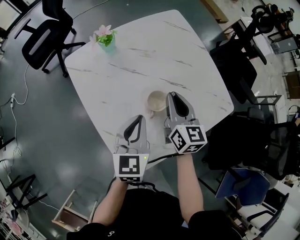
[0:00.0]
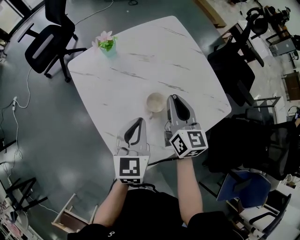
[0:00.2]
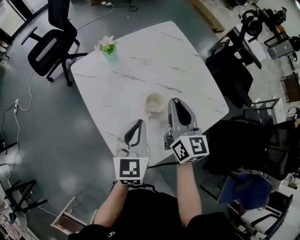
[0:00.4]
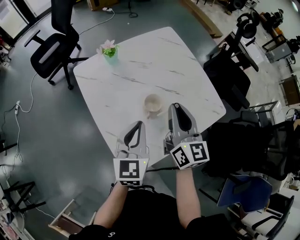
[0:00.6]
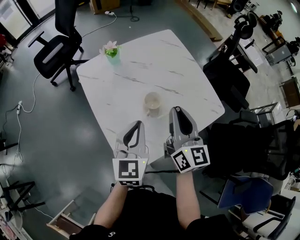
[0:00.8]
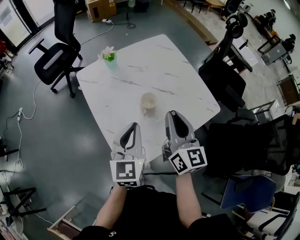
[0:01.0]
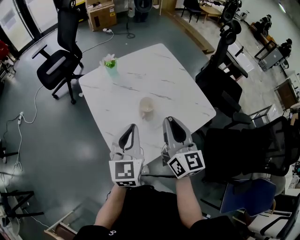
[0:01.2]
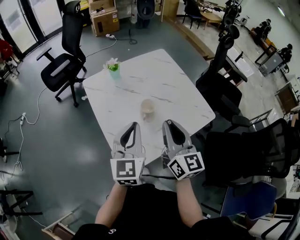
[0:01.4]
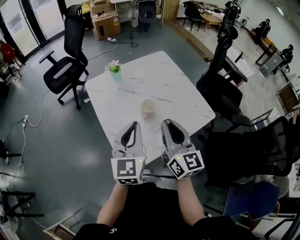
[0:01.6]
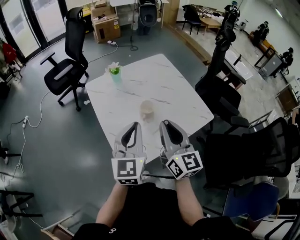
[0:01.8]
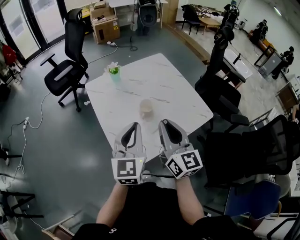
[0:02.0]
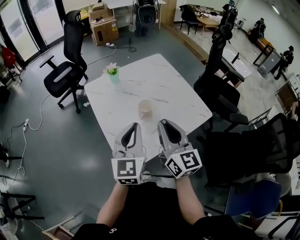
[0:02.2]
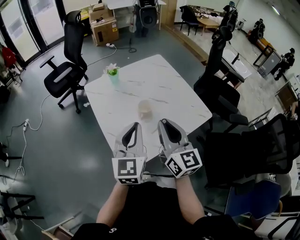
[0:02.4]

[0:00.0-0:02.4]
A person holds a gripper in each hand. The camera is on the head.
0.0 to 1.2 s: The left gripper shifts roughly 15 cm upward and backward, while the right gripper goes about 20 cm backward and upward.
1.2 to 2.4 s: The left gripper goes roughly 5 cm upward. Meanwhile the right gripper goes about 5 cm backward.

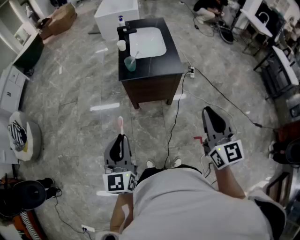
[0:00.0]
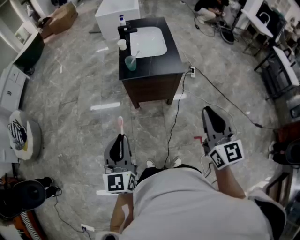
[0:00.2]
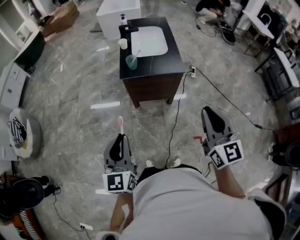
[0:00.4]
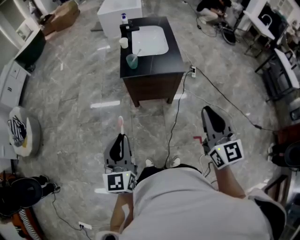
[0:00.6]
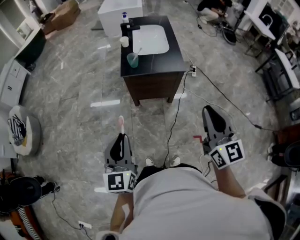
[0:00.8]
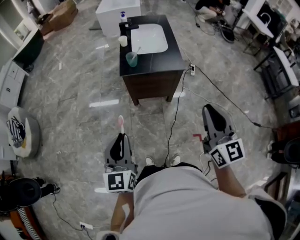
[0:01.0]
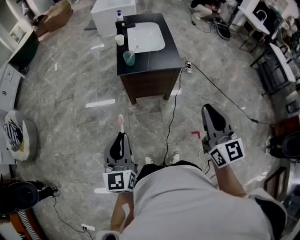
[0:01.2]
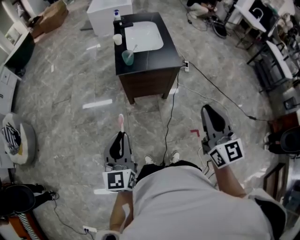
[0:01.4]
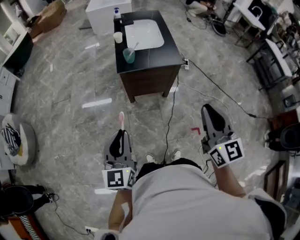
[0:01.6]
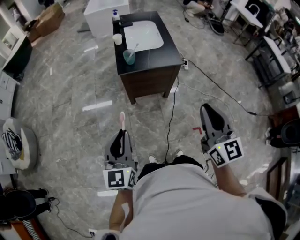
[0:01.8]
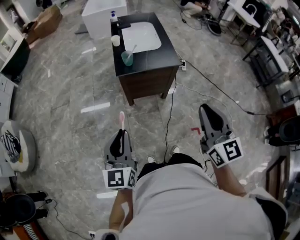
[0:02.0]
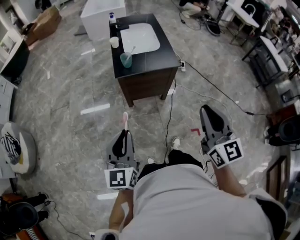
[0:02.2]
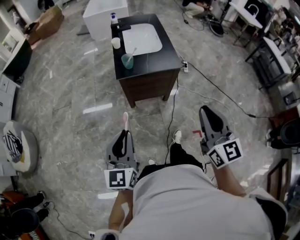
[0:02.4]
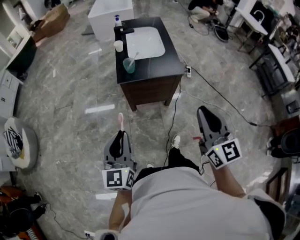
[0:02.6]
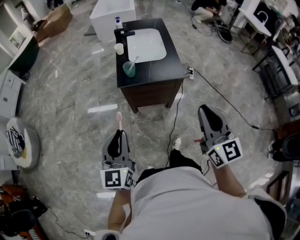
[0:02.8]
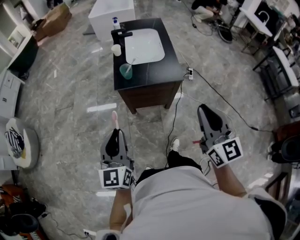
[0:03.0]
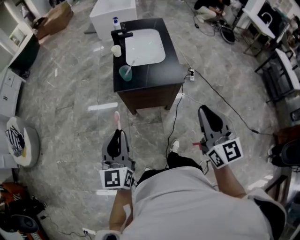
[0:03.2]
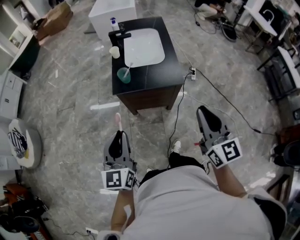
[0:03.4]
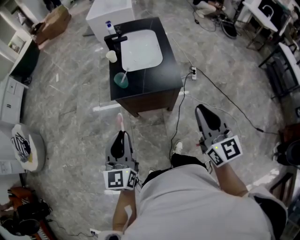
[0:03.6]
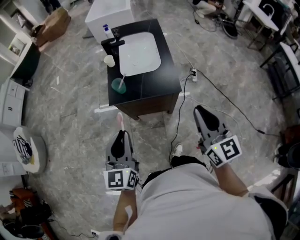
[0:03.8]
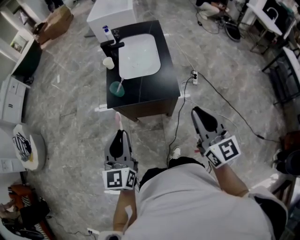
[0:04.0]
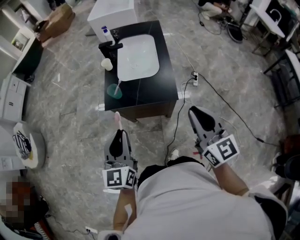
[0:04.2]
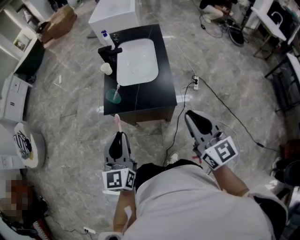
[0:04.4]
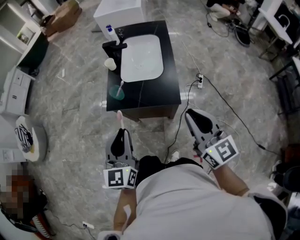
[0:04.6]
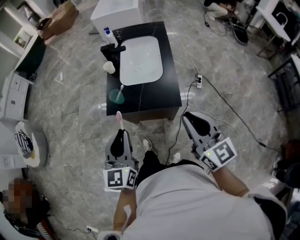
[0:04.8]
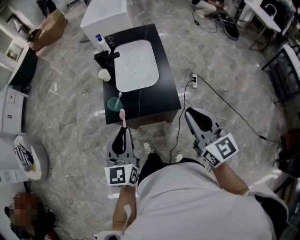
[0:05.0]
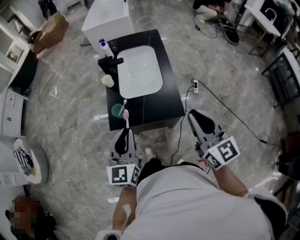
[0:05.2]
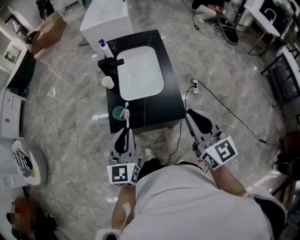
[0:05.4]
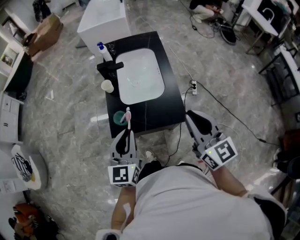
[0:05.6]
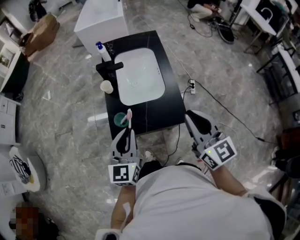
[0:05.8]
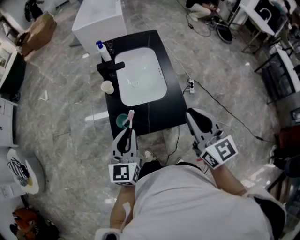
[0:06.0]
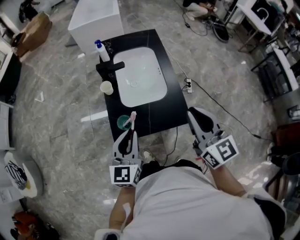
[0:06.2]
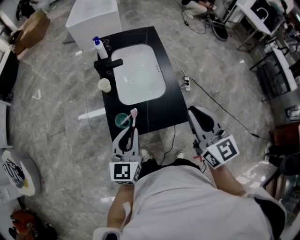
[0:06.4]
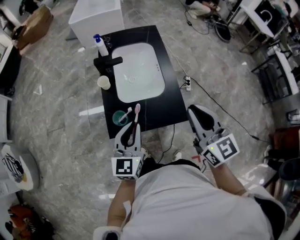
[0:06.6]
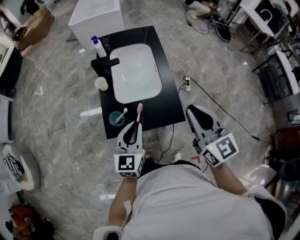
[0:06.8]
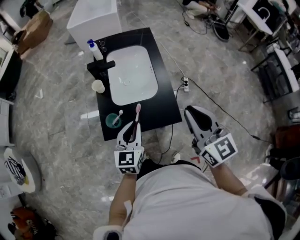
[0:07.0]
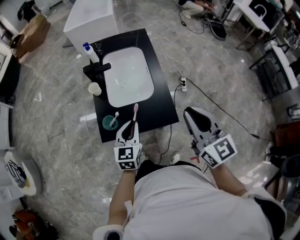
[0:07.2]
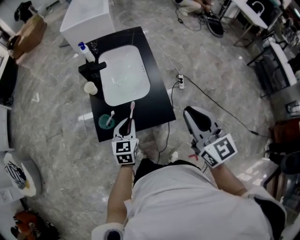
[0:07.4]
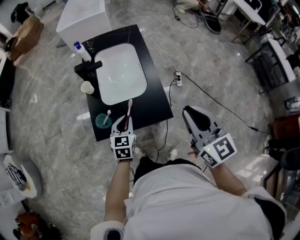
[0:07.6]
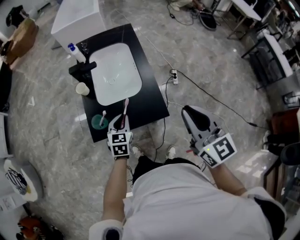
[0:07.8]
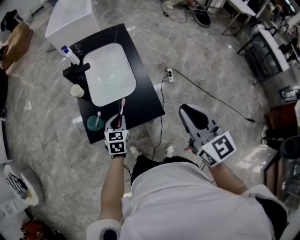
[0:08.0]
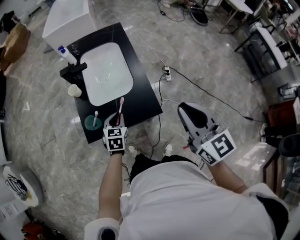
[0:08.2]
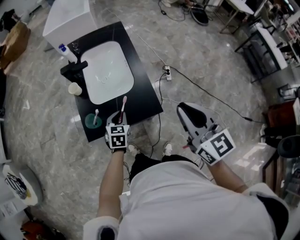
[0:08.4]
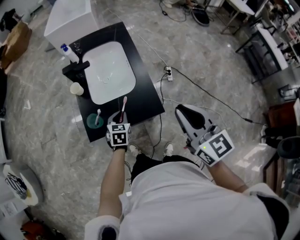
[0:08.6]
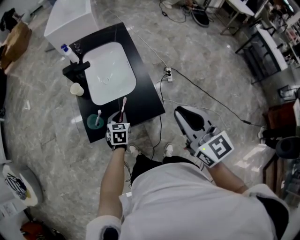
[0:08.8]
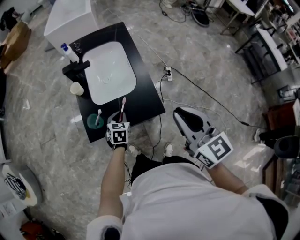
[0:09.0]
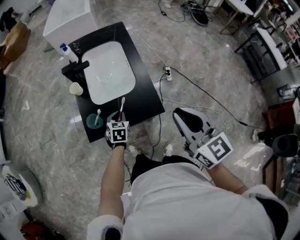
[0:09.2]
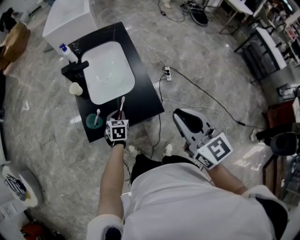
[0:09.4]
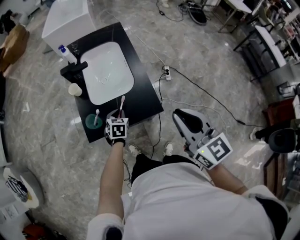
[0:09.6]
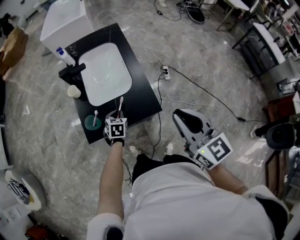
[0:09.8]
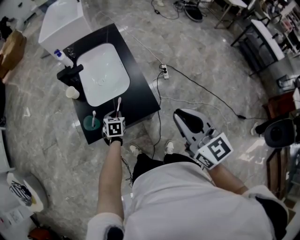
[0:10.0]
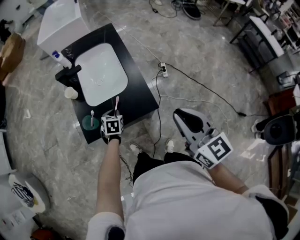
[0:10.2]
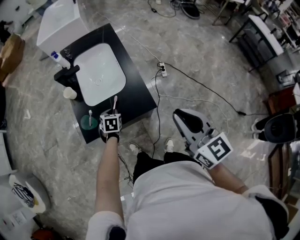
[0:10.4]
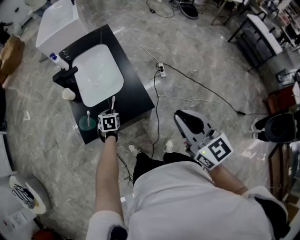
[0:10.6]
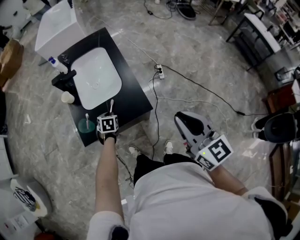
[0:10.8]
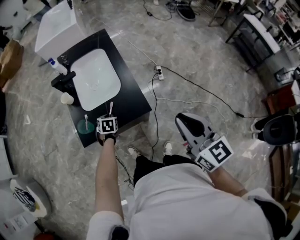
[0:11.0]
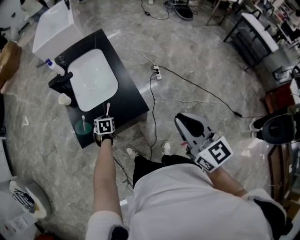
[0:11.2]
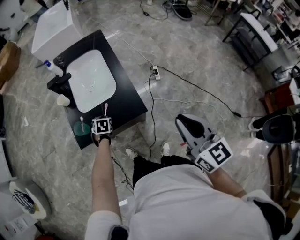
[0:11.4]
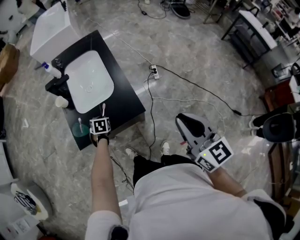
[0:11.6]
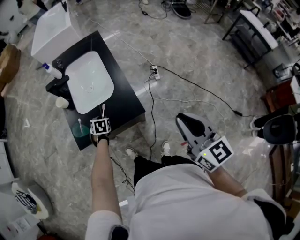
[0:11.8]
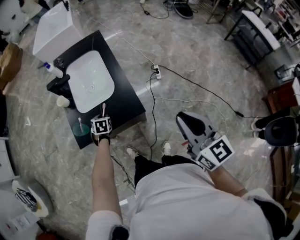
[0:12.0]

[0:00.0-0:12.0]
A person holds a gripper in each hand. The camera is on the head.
0.0 to 1.6 s: The right gripper travels to the left by some 5 cm.
1.6 to 3.0 s: Both grippers travel together forward, about 10 cm.
3.0 to 4.4 s: The right gripper shifts approximately 20 cm forward and to the right, while the left gripper goes some 20 cm to the right and forward.
4.4 to 6.0 s: The right gripper is displaced forward and to the left by about 15 cm. Meanwhile the left gripper moves forward, some 20 cm.
6.0 to 7.6 s: The right gripper is displaced to the right by about 10 cm. Meanwhile the left gripper is displaced downward and to the right by approximately 15 cm, and swivels some 20 degrees.
7.6 to 9.0 s: The left gripper is displaced downward by some 10 cm.
9.0 to 10.4 s: The right gripper moves approximately 5 cm.
10.4 to 12.0 s: The right gripper shifts roughly 10 cm to the right.

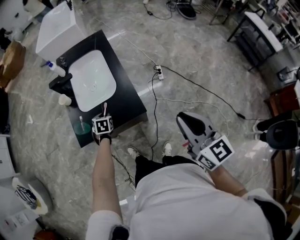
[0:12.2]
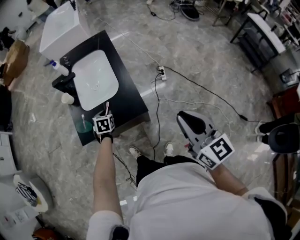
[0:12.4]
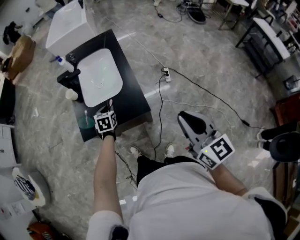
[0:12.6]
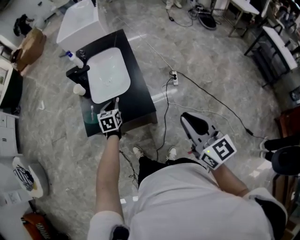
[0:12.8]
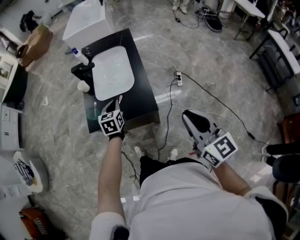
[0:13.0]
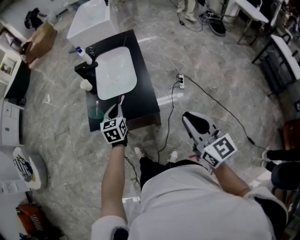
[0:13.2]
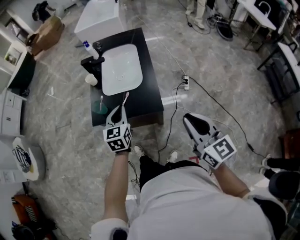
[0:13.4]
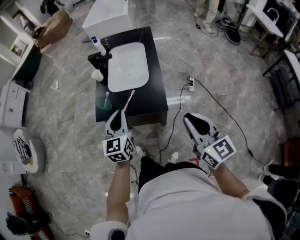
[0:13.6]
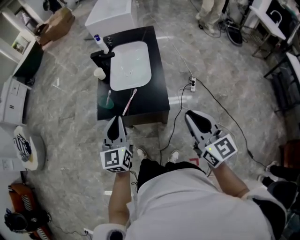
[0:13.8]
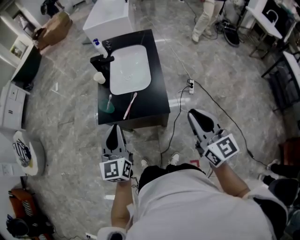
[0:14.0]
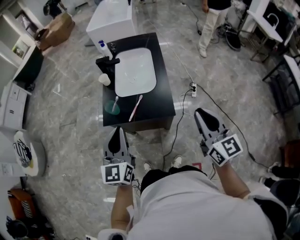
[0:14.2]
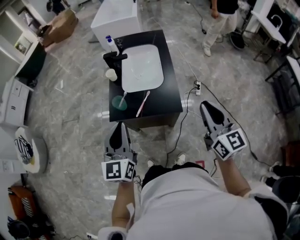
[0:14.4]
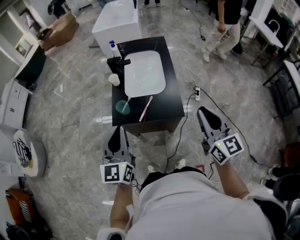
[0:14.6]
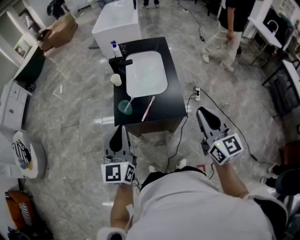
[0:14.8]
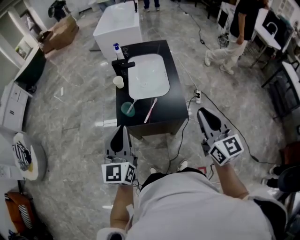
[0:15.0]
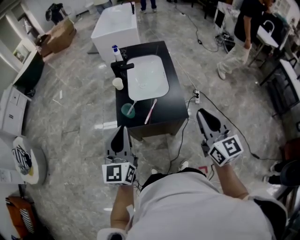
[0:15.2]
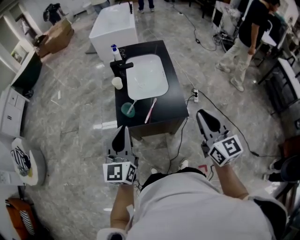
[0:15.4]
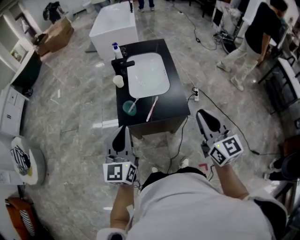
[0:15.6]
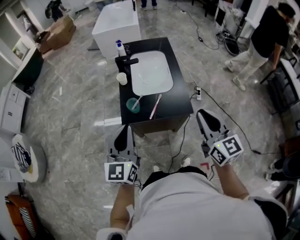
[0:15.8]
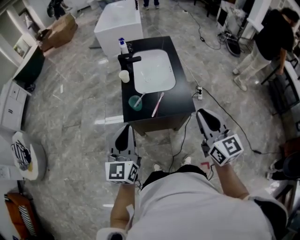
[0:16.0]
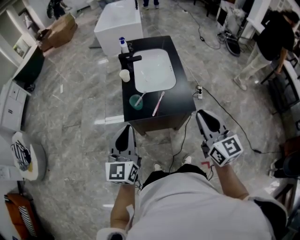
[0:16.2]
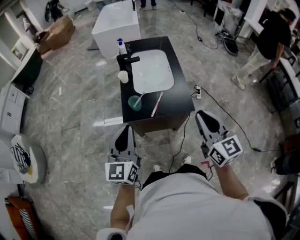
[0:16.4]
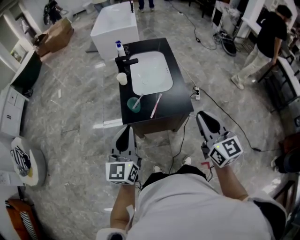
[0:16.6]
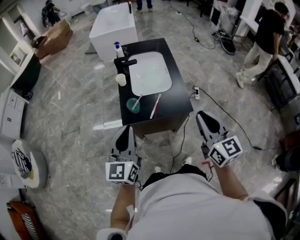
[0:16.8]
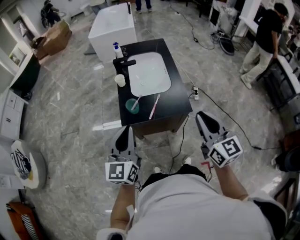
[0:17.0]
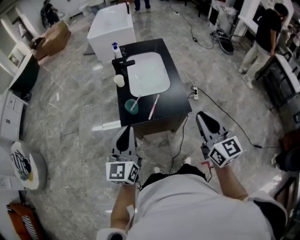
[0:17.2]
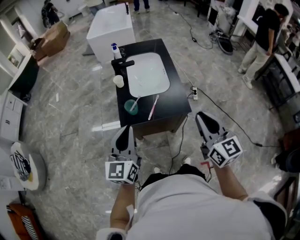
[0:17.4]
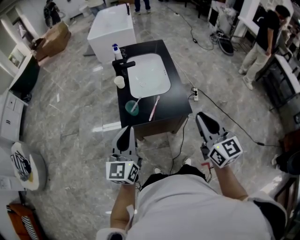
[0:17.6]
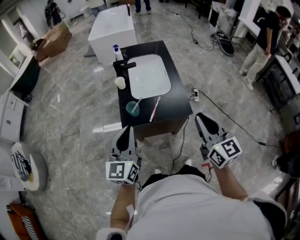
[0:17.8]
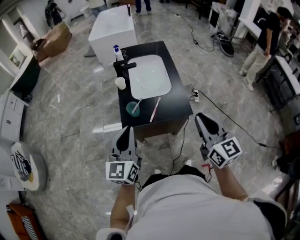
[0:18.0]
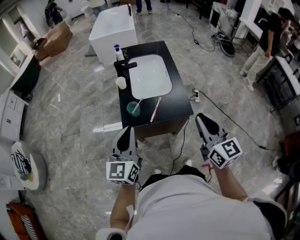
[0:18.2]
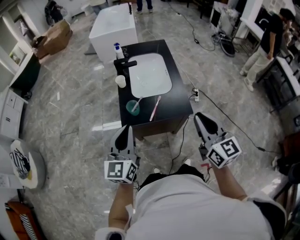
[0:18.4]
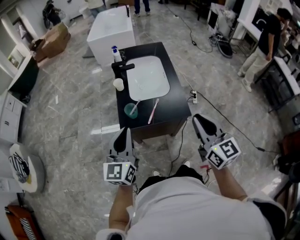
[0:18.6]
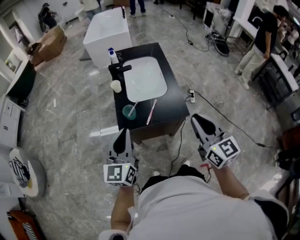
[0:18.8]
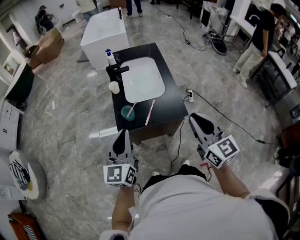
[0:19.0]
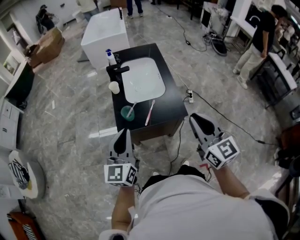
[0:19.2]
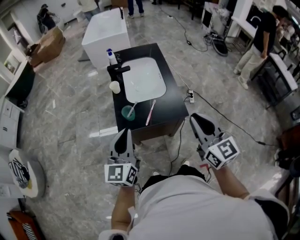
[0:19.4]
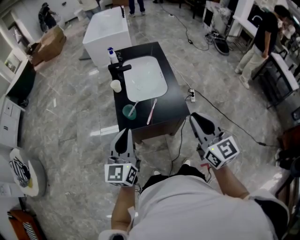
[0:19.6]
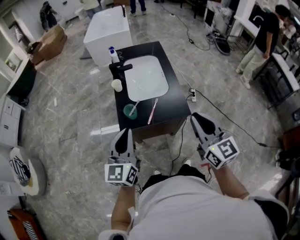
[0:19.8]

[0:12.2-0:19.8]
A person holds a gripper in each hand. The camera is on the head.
12.2 to 13.8 s: The left gripper travels upward and backward by roughly 35 cm, angles its fingers upward, by about 50 degrees, and closes its fingers.
13.8 to 15.2 s: The left gripper moves to the left and upward, roughly 15 cm, while the right gripper is displaced to the left by some 10 cm.
15.2 to 16.8 s: The right gripper ends up about 5 cm from where it was.
16.8 to 19.8 s: The grippers make only small movements.

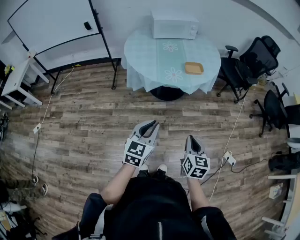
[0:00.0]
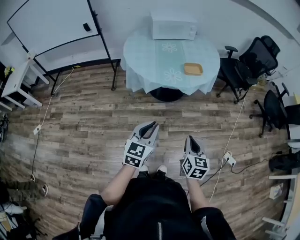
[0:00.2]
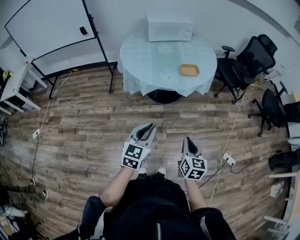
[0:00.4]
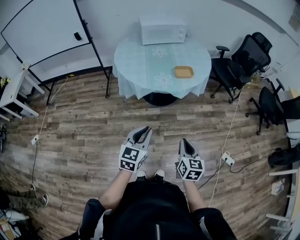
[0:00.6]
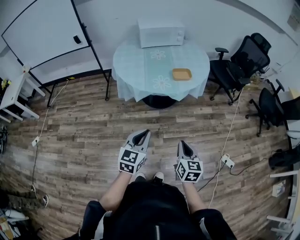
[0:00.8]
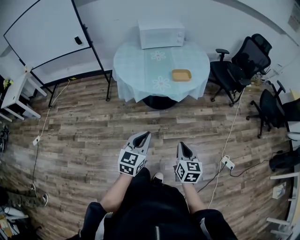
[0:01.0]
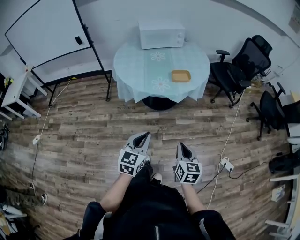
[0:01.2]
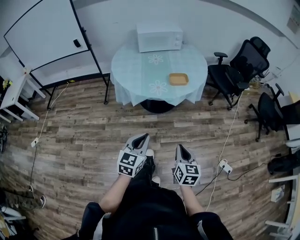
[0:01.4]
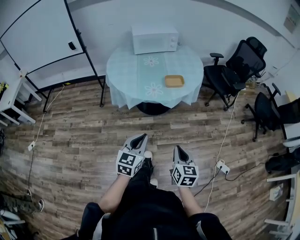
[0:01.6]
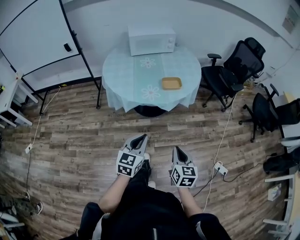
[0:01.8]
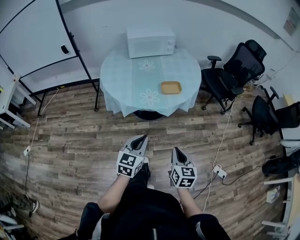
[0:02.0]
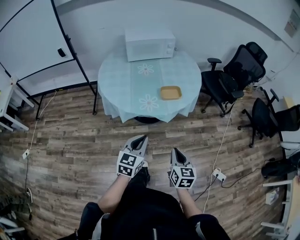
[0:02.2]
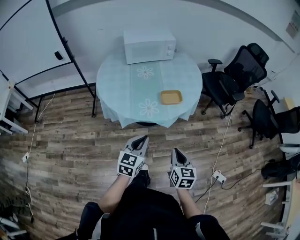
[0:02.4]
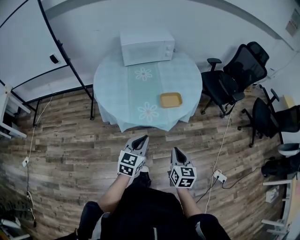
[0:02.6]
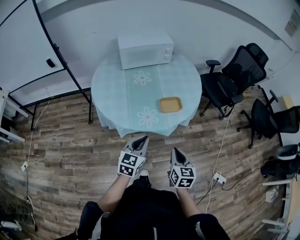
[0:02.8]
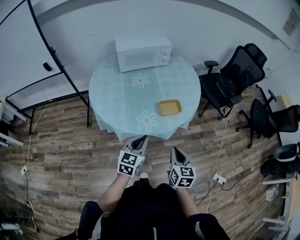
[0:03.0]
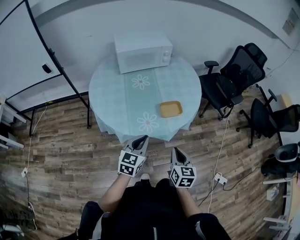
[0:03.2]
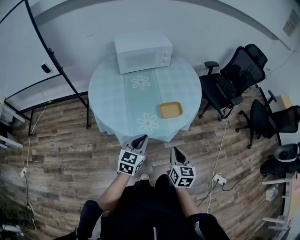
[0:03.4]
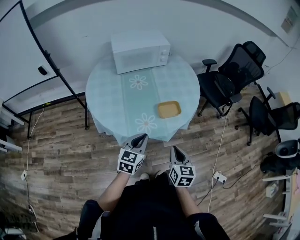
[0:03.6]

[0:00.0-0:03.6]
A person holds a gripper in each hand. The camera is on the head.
0.0 to 1.8 s: The two grippers go about 10 cm forward and to the right.
1.8 to 3.6 s: Both grippers move forward, about 25 cm.
